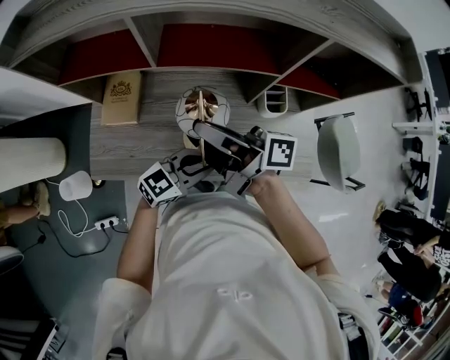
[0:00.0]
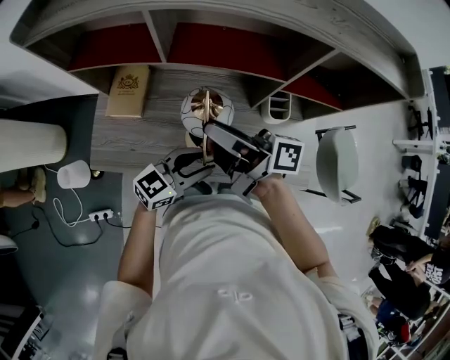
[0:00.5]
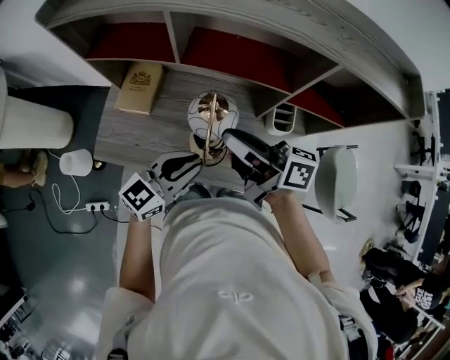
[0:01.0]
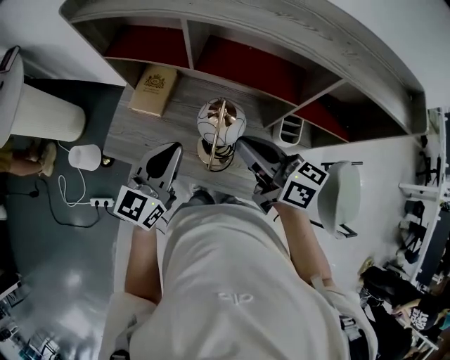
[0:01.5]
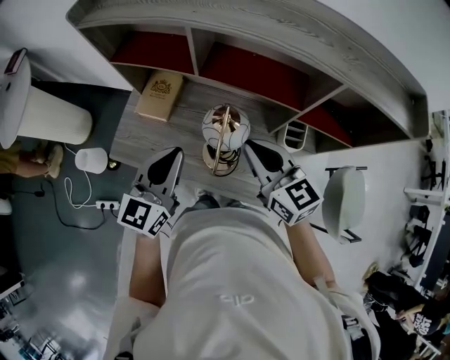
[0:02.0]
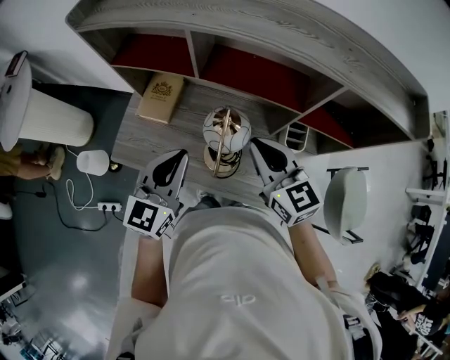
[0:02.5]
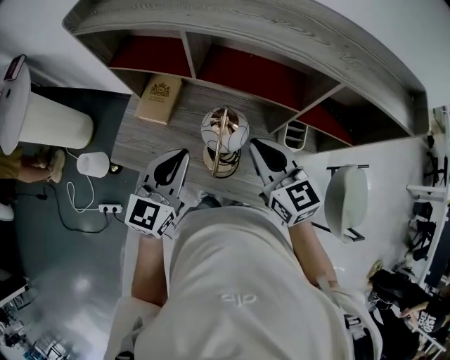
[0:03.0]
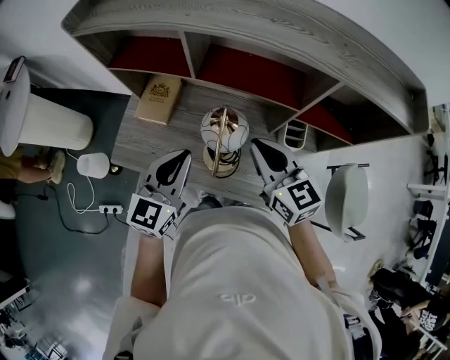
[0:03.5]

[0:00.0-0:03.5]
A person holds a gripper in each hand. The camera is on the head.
0:00.0 to 0:02.0: The left gripper heads upward, covering approximately 15 cm, rotates about 60 degrees, and opens, then closes once more. The right gripper shifts by about 5 cm, rotates around the line of its fingers by roughly 60 degrees, counterclockwise from behind, and opens, then closes again.
0:02.0 to 0:03.5: There are only small adjustments of the grippers.

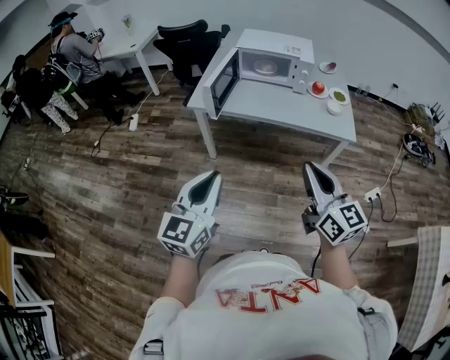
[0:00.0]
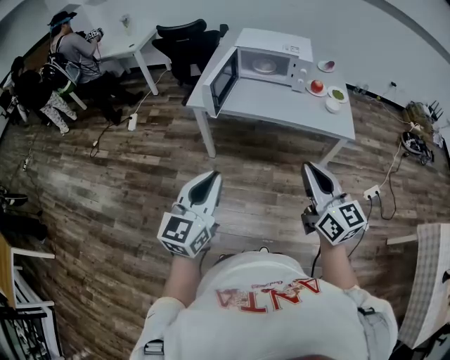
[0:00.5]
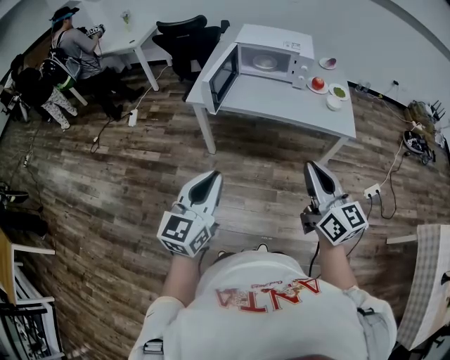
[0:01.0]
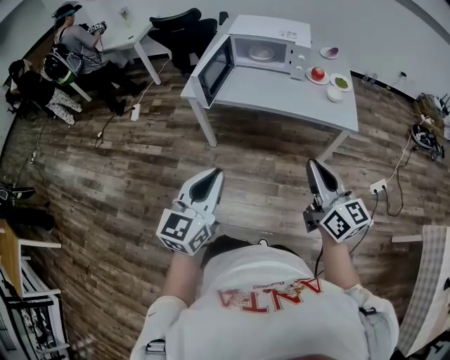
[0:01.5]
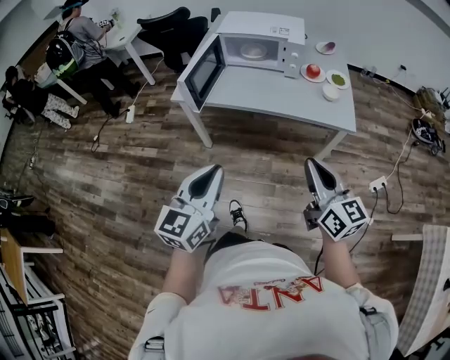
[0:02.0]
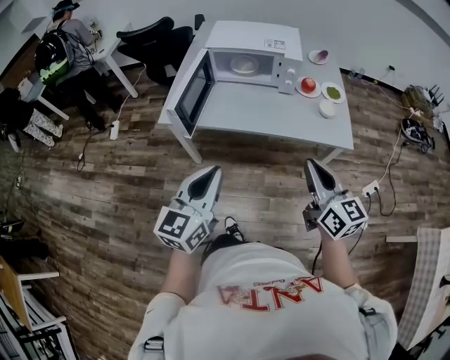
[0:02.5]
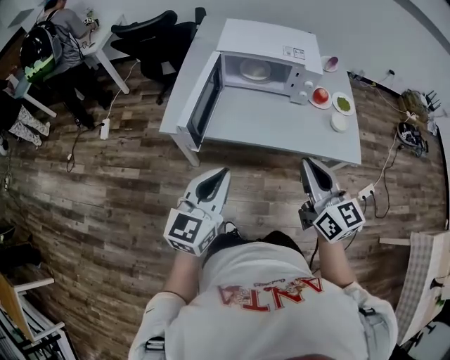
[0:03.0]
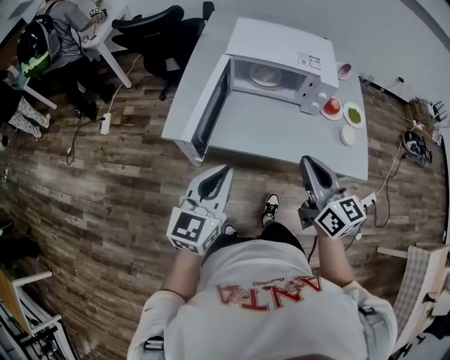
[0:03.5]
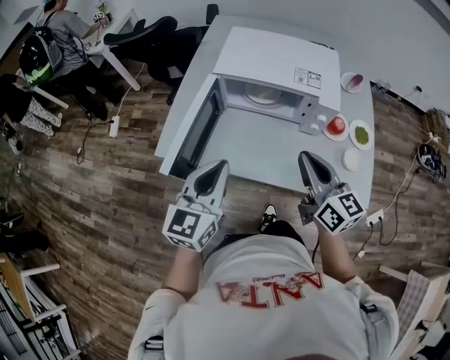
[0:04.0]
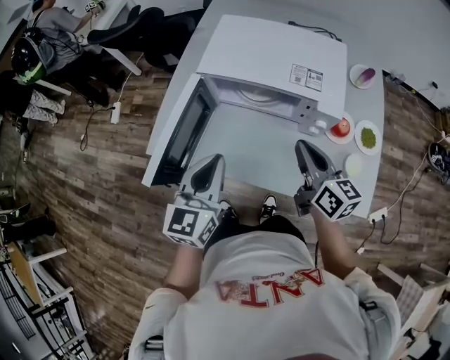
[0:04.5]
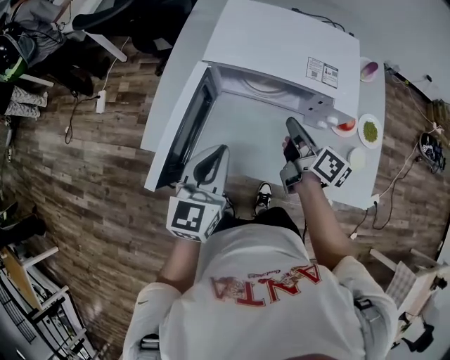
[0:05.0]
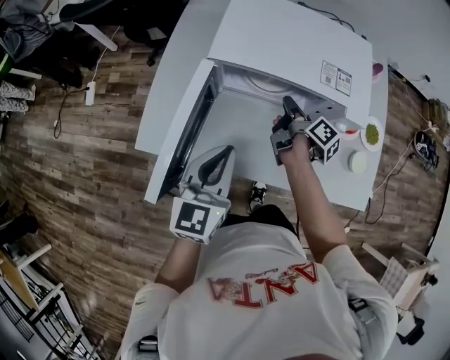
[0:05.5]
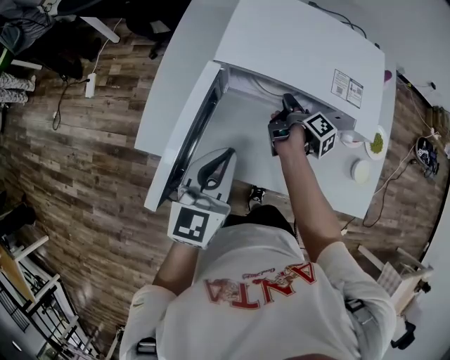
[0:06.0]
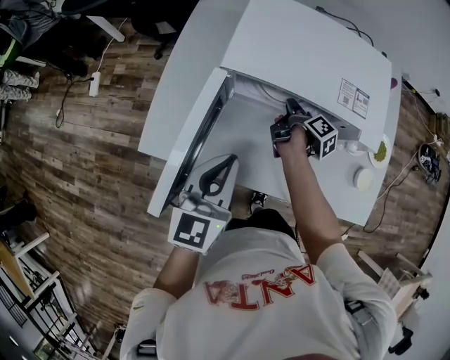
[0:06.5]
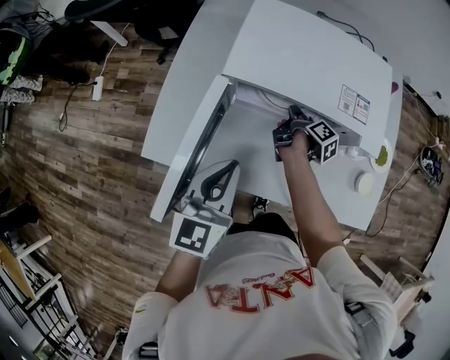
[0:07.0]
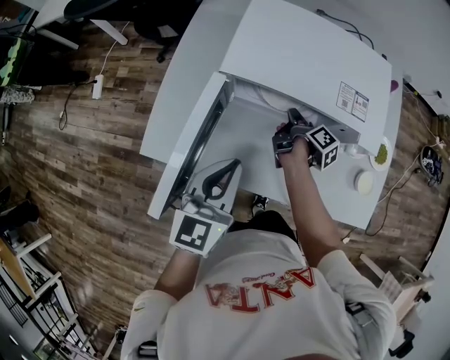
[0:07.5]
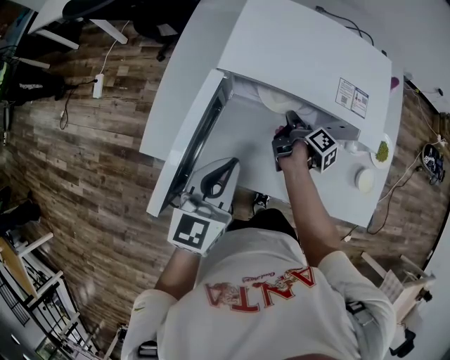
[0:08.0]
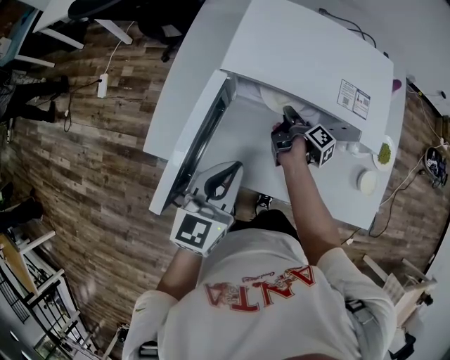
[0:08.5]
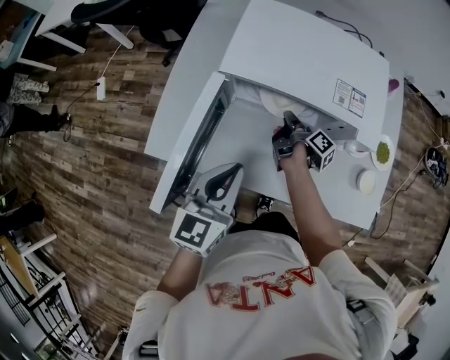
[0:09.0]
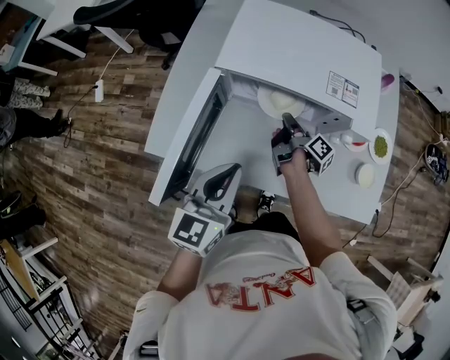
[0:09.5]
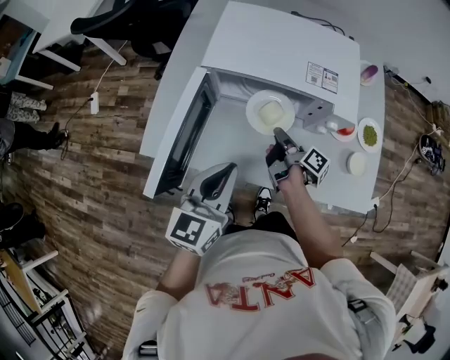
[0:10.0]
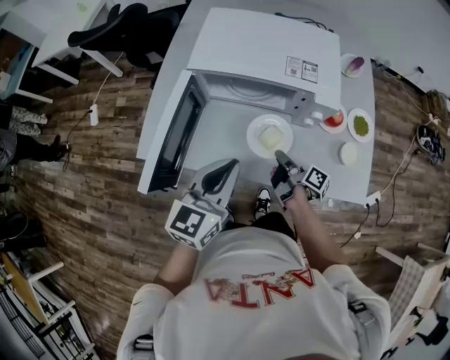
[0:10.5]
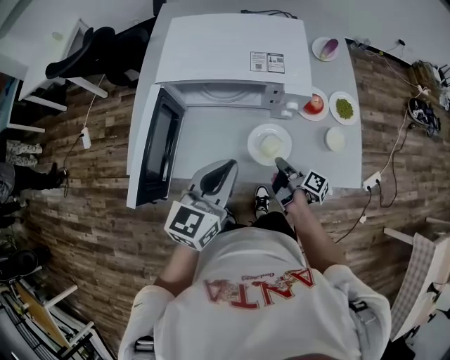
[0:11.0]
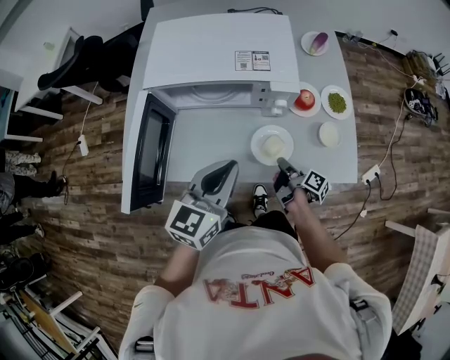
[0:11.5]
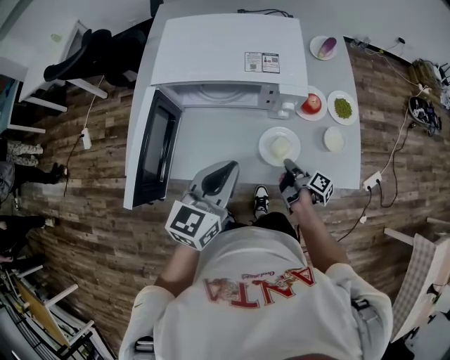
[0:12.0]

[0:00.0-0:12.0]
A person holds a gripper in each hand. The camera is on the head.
0:00.0 to 0:02.0: The left gripper moves to the right and forward, some 10 cm; the right gripper goes roughly 15 cm to the right, downward and forward.
0:02.0 to 0:04.0: The pair of grippers is taken forward, about 40 cm.
0:04.0 to 0:06.0: The left gripper is displaced forward and downward by roughly 15 cm. The right gripper travels forward and downward by some 35 cm, and rolls clockwise, seen from behind, by some 70 degrees.
0:06.0 to 0:08.0: The grippers move only a little.
0:08.0 to 0:10.0: The left gripper shifts about 5 cm backward; the right gripper goes roughly 10 cm backward.
0:10.0 to 0:12.0: The right gripper moves to the right, backward and downward, roughly 20 cm, while the left gripper shifts about 10 cm to the right.

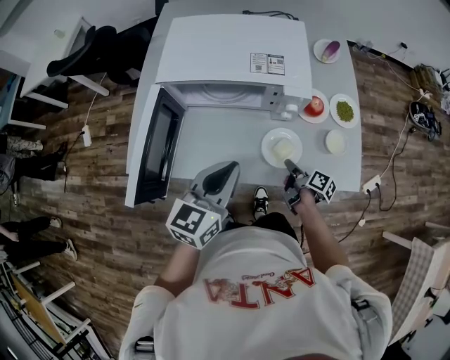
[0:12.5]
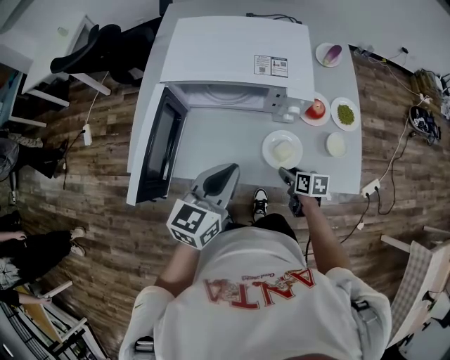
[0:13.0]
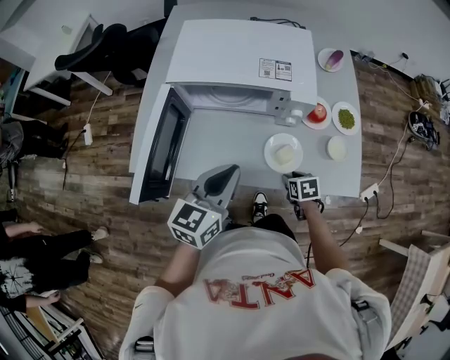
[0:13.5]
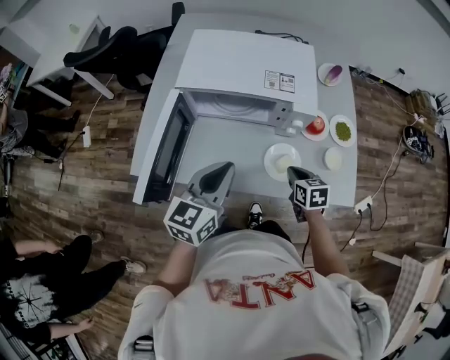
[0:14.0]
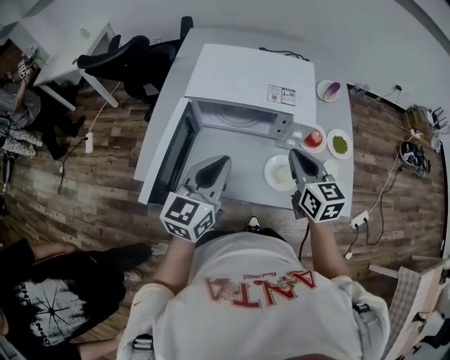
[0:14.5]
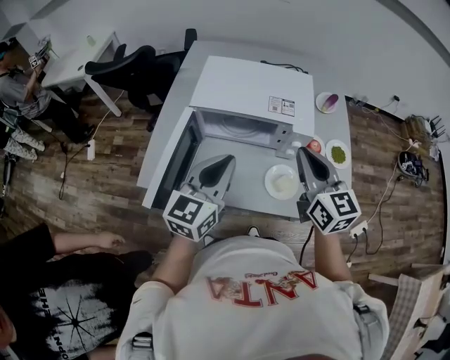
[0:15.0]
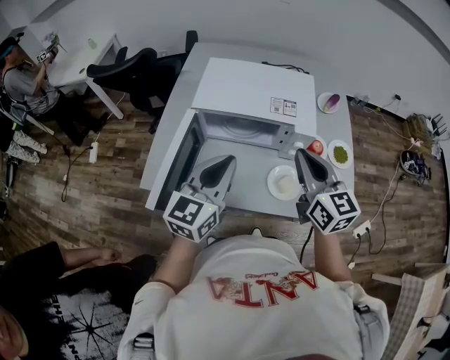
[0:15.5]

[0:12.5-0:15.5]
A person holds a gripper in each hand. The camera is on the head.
0:12.5 to 0:14.0: The right gripper goes roughly 10 cm upward, and twists roughly 60 degrees counterclockwise, seen from behind.
0:14.0 to 0:15.5: The left gripper moves upward, roughly 10 cm; the right gripper goes roughly 30 cm upward, and tilts its fingers approximately 40 degrees upward.

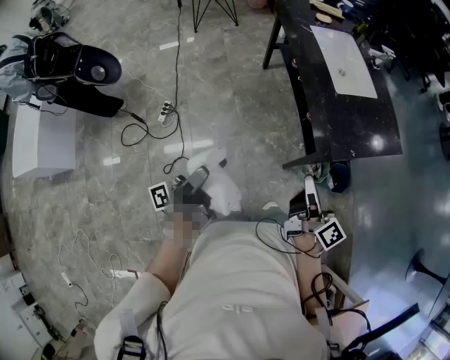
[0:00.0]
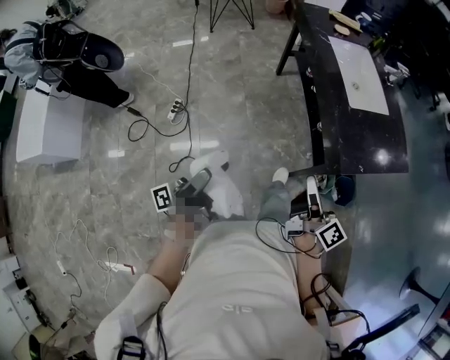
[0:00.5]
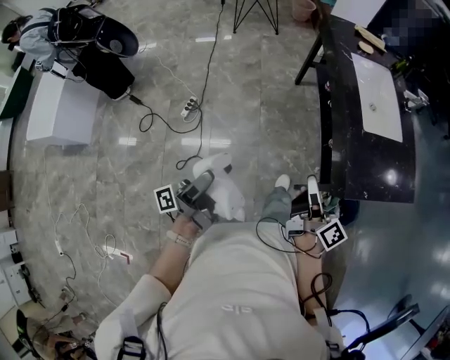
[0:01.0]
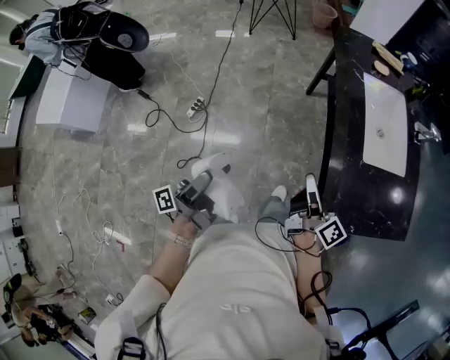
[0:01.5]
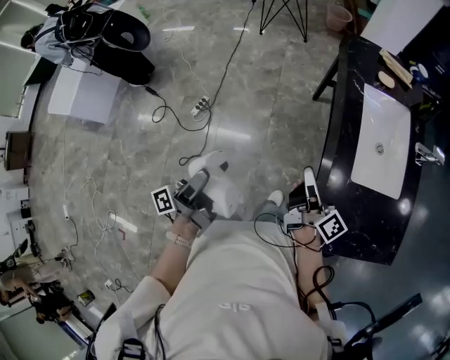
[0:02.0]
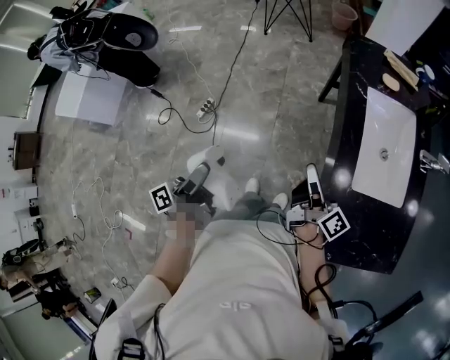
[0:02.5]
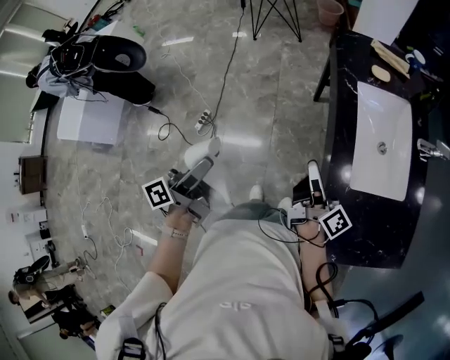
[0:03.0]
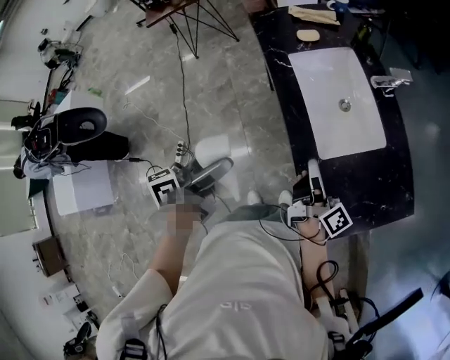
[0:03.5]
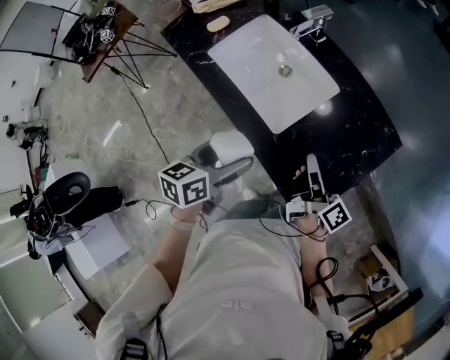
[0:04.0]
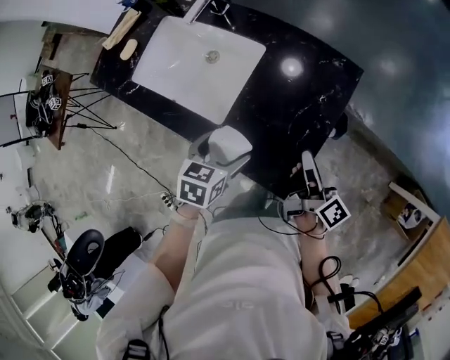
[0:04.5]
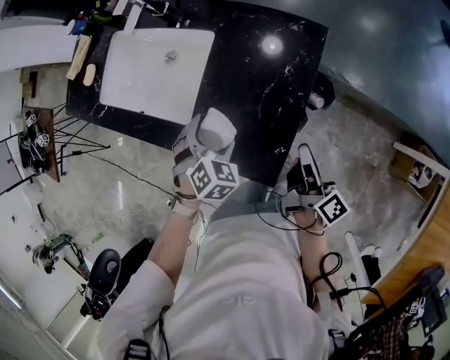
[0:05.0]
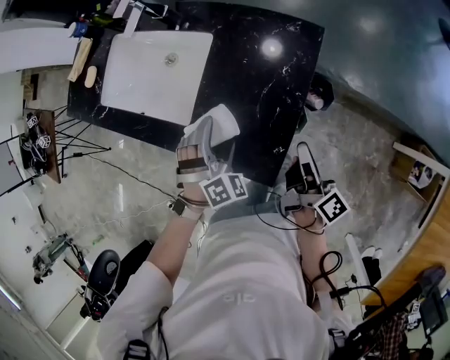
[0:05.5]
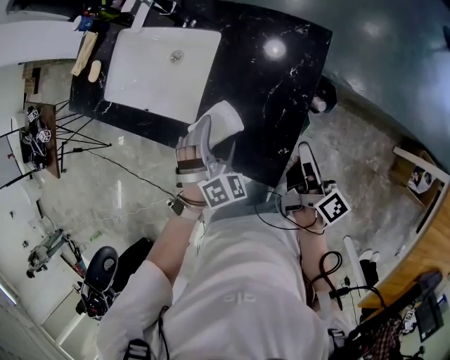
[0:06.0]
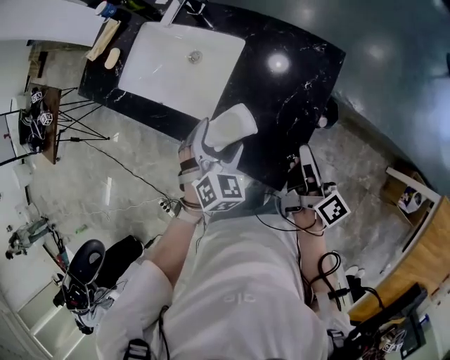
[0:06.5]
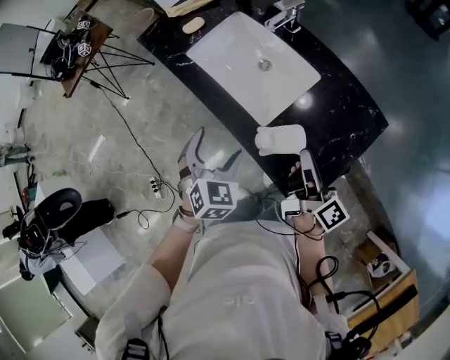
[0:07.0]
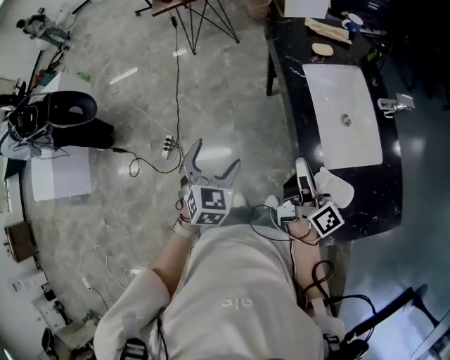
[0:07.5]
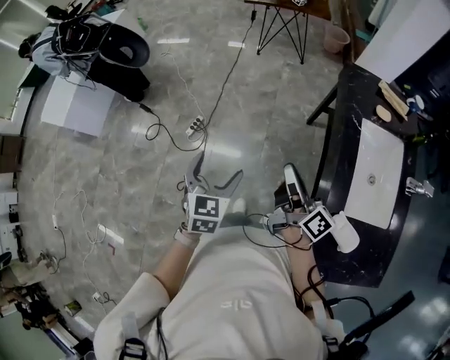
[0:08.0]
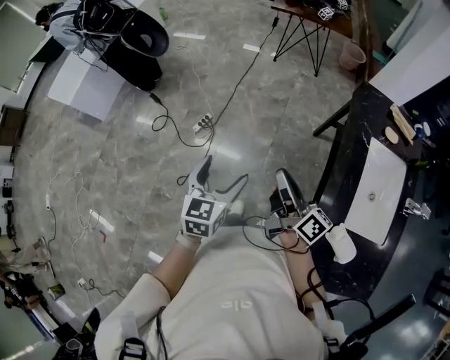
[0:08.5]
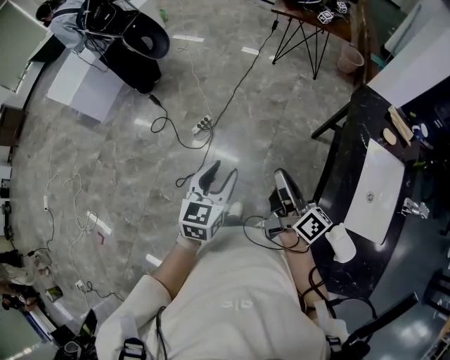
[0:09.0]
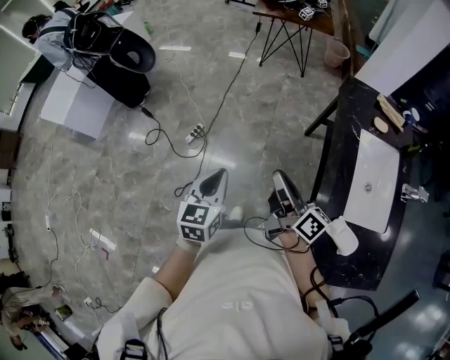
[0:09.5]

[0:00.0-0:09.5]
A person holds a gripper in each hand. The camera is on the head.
0:00.0 to 0:02.0: Both grippers move forward, about 30 cm. The right gripper rotates some 30 degrees. The left gripper turns by approximately 30 degrees.
0:02.0 to 0:04.0: The left gripper moves approximately 35 cm, and angles its fingers downward, by about 50 degrees. The right gripper shifts by some 30 cm, and turns by approximately 50 degrees.
0:04.0 to 0:05.5: Both grippers move to the right and downward, some 25 cm. The left gripper rolls clockwise, seen from behind, by some 100 degrees. Meanwhile the right gripper turns by about 30 degrees.
0:05.5 to 0:07.5: The pair of grippers is taken approximately 40 cm. The right gripper swivels about 60 degrees; the left gripper twists about 80 degrees counterclockwise, seen from behind.
0:07.5 to 0:09.5: The left gripper shifts by some 20 cm, rotates around the line of its fingers by approximately 40 degrees, counterclockwise from behind, and closes up, while the right gripper ends up approximately 25 cm from where it was, and turns by approximately 40 degrees.
